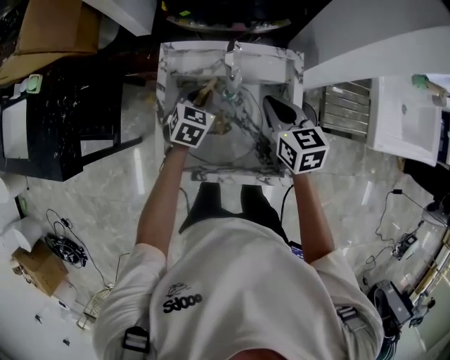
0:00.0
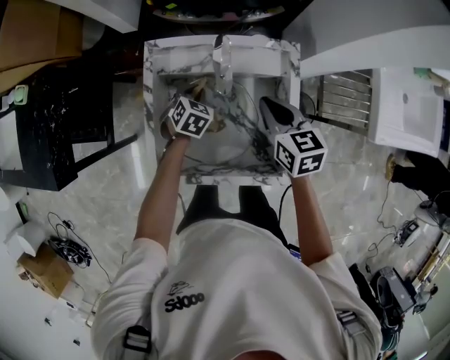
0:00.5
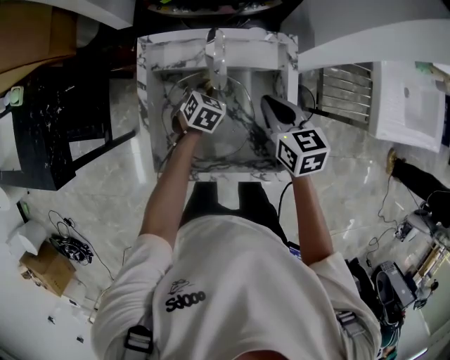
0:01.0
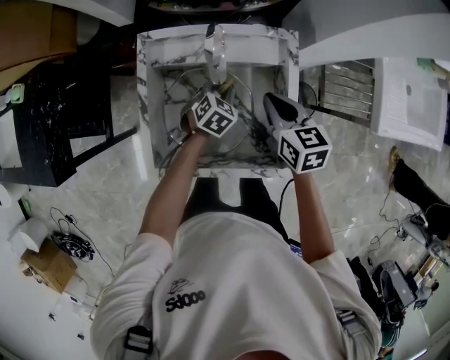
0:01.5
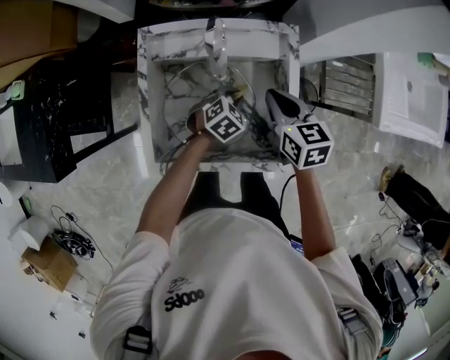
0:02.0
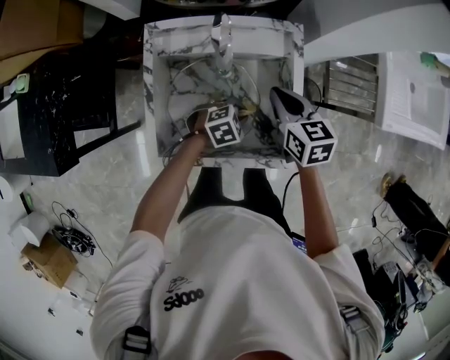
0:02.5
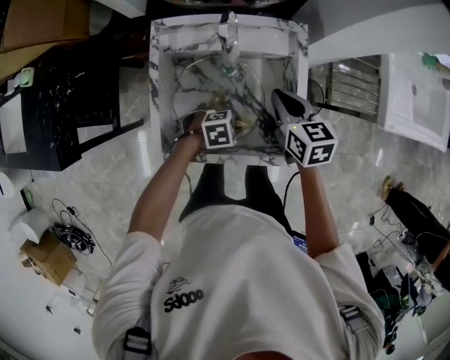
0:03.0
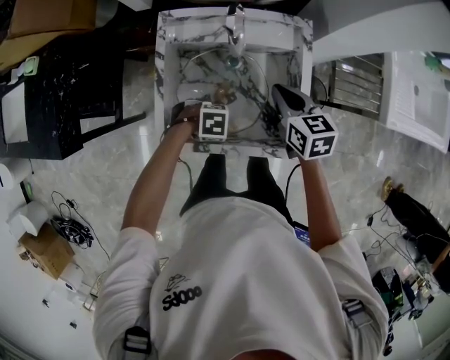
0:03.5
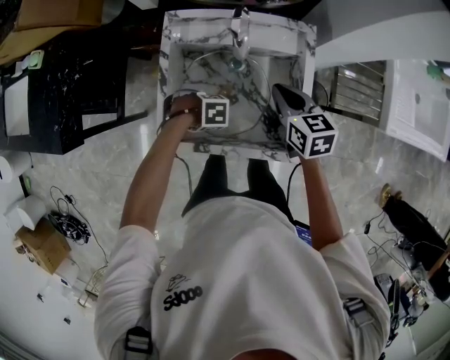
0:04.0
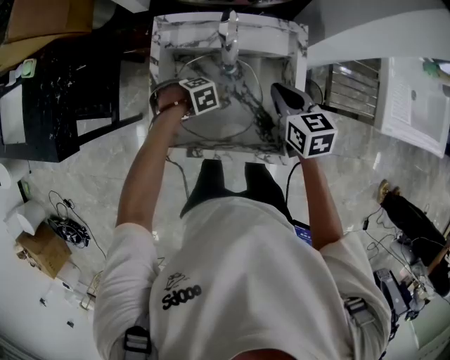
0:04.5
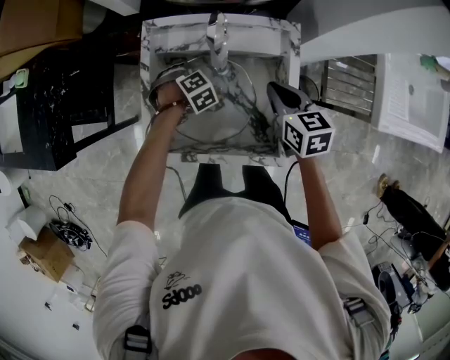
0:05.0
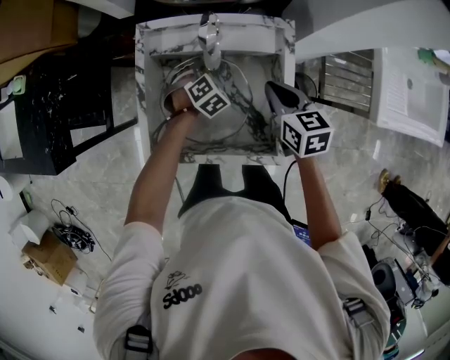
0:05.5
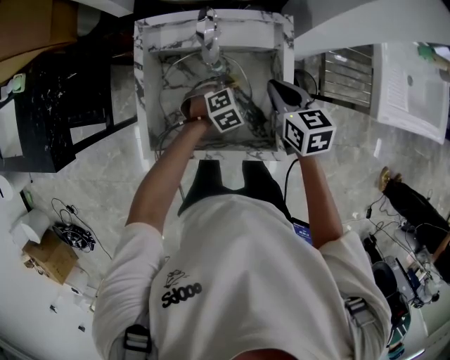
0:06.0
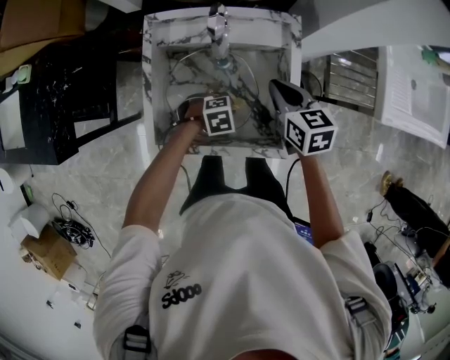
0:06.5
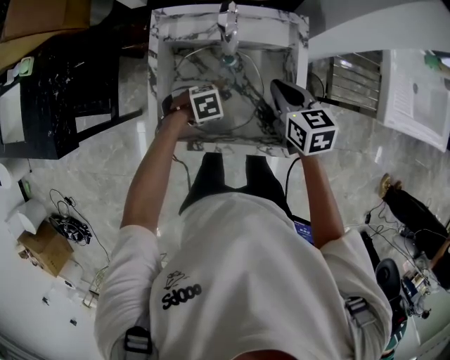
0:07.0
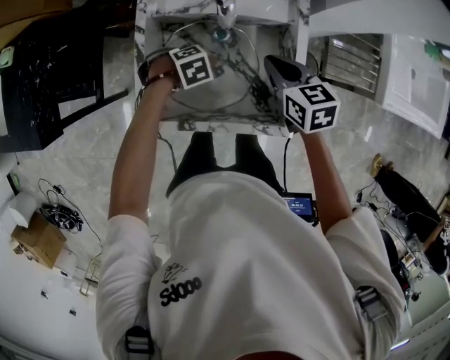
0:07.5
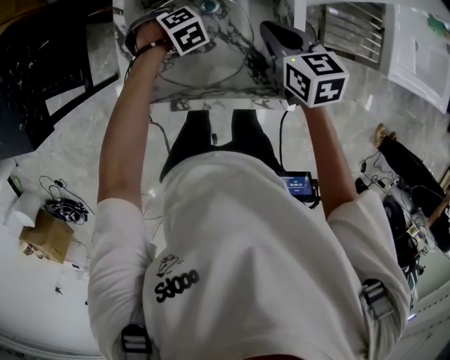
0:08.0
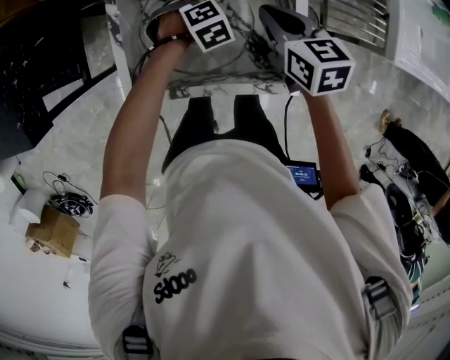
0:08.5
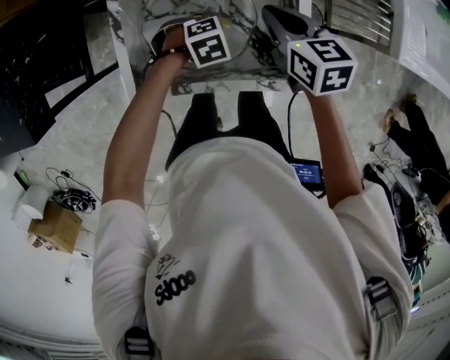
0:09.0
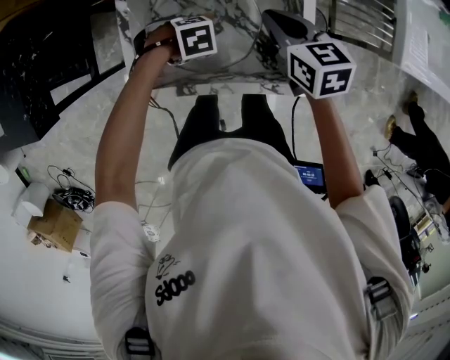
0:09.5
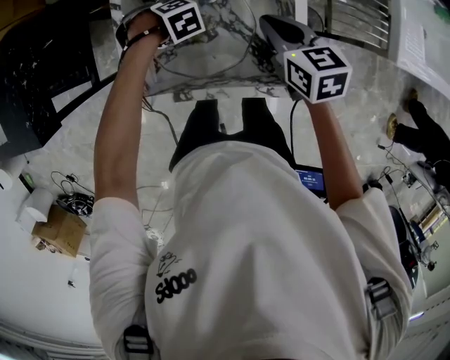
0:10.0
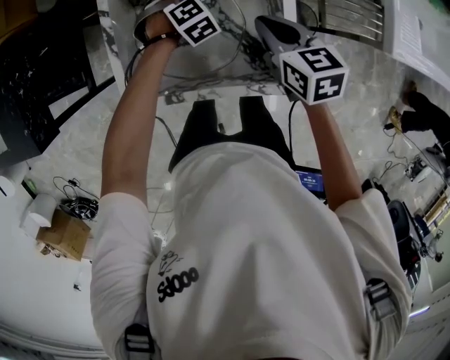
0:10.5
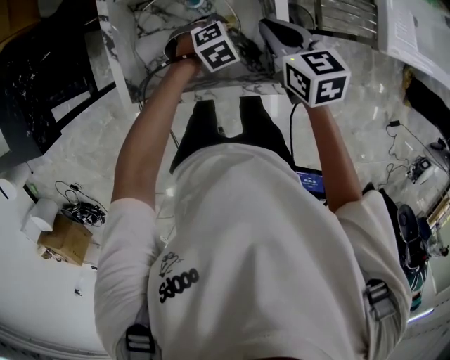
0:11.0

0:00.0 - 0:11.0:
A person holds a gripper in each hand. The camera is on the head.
0:00.0 - 0:02.0: The right gripper changes place by some 5 cm; the left gripper is displaced to the right, downward and backward by some 20 cm, and swivels some 30 degrees.
0:02.0 - 0:03.5: The left gripper changes place by approximately 20 cm, and rotates approximately 50 degrees.
0:03.5 - 0:05.5: The left gripper changes place by some 25 cm, and turns by roughly 60 degrees.
0:05.5 - 0:07.5: The left gripper shifts by roughly 10 cm, and changes its angle by some 30 degrees.
0:07.5 - 0:09.0: The left gripper shifts by about 10 cm.

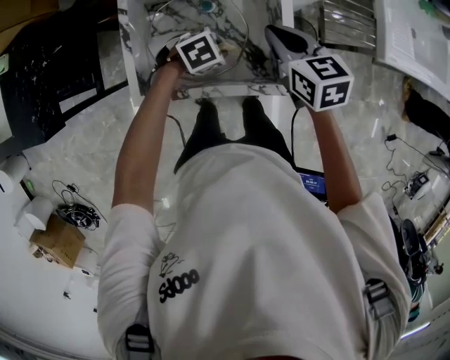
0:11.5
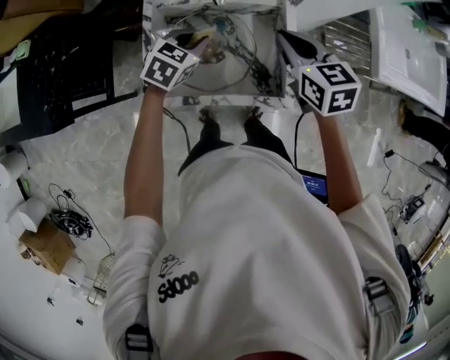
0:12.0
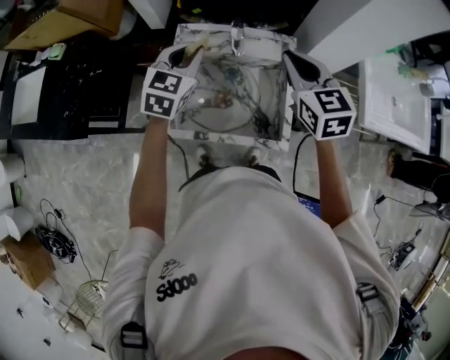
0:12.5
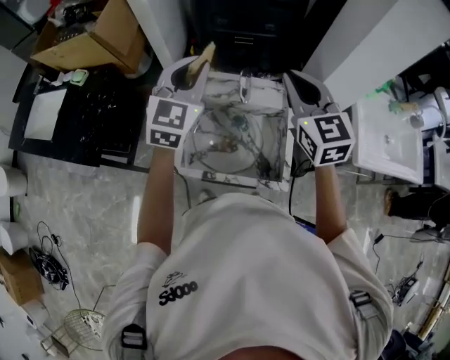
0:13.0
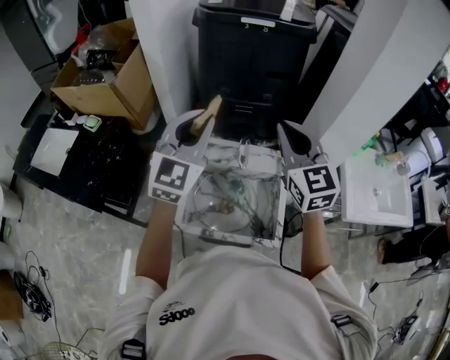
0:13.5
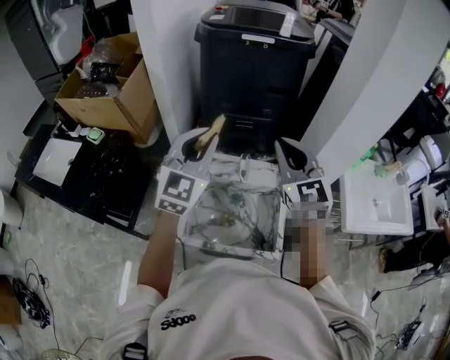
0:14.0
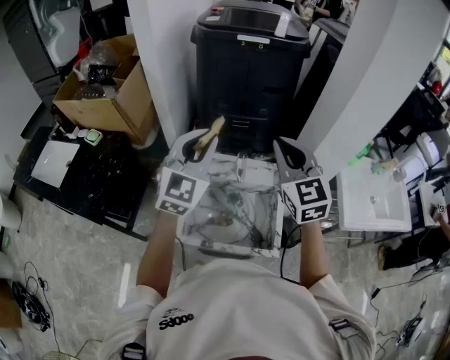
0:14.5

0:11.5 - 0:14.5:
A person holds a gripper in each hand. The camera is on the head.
0:11.5 - 0:13.0: The right gripper travels upward by approximately 30 cm, and swivels approximately 40 degrees, while the left gripper moves upward, about 40 cm, and tips its fingers upward by about 60 degrees.
0:13.0 - 0:14.5: Both grippers move upward, some 5 cm.

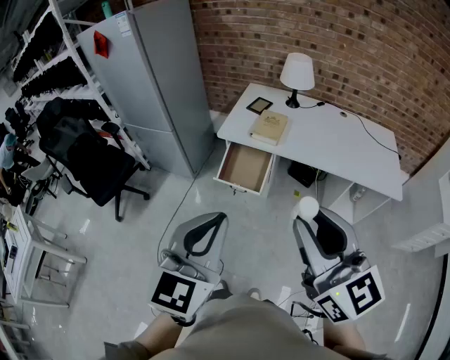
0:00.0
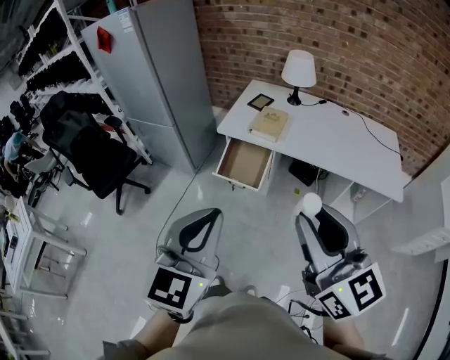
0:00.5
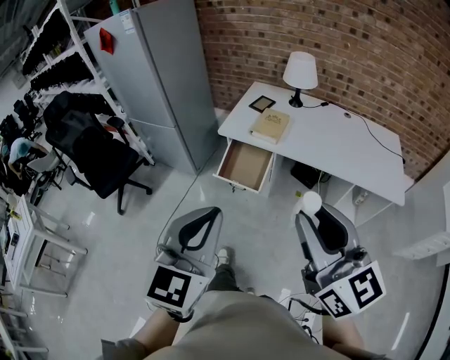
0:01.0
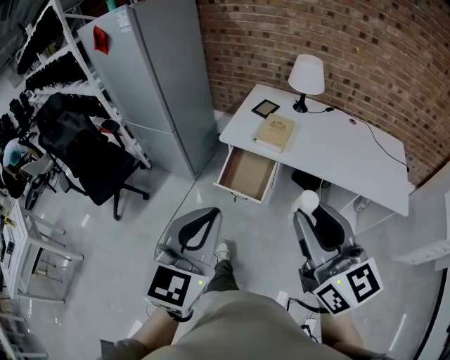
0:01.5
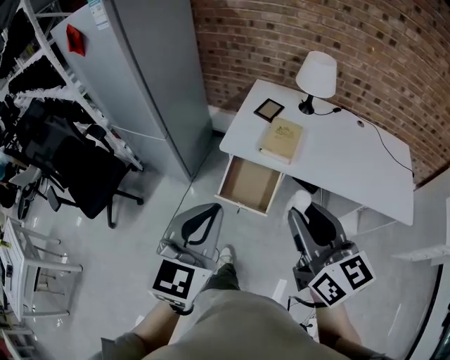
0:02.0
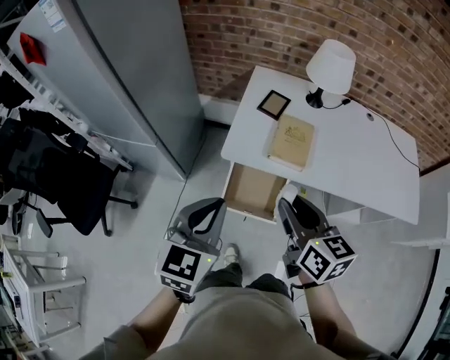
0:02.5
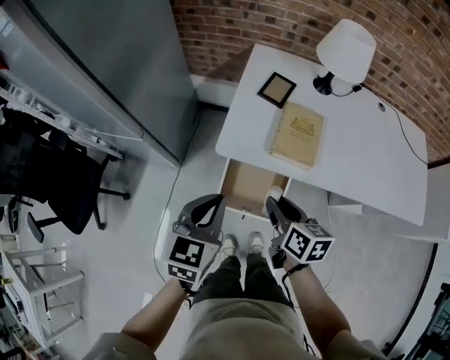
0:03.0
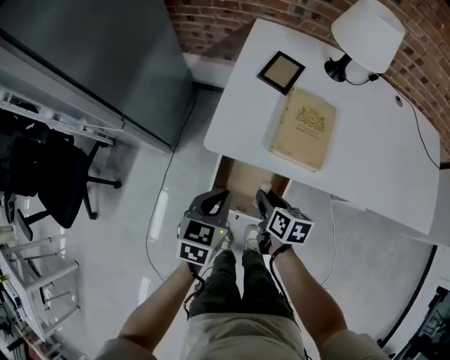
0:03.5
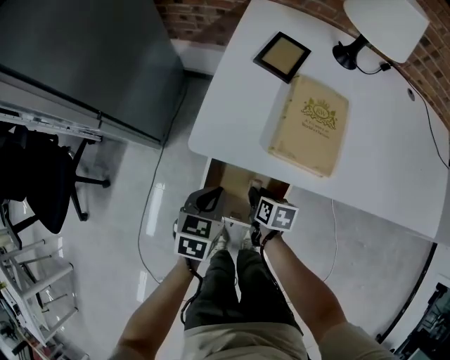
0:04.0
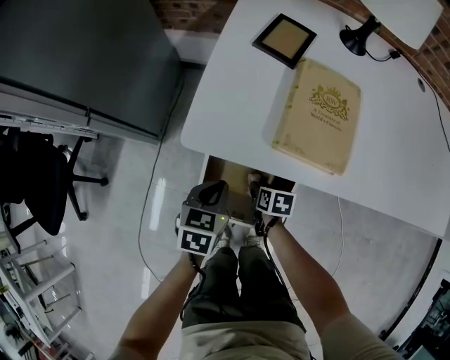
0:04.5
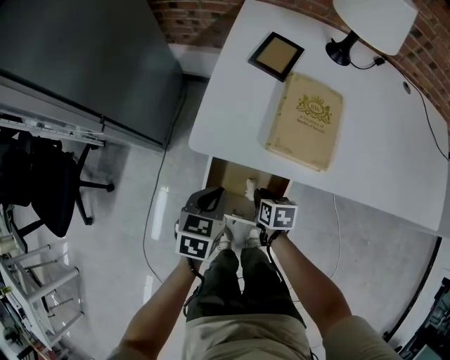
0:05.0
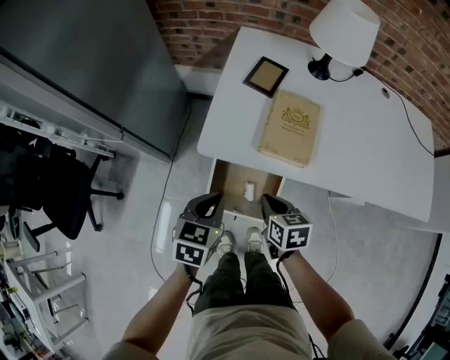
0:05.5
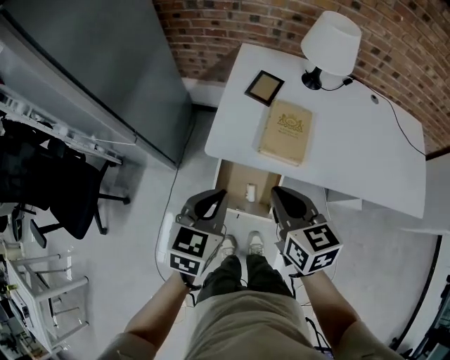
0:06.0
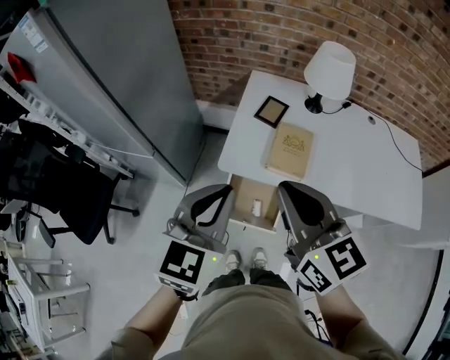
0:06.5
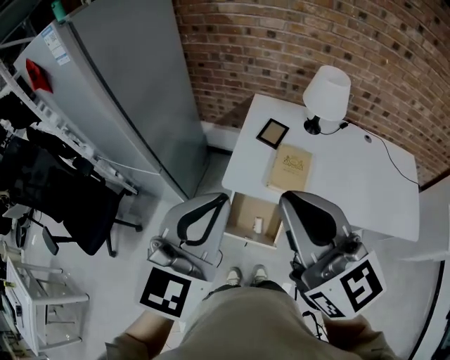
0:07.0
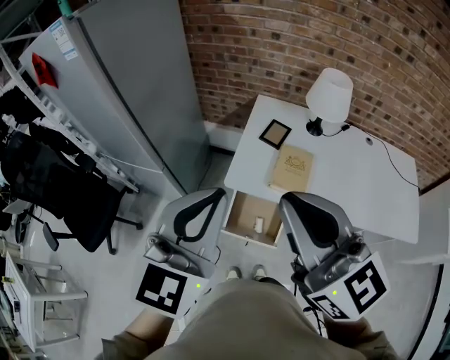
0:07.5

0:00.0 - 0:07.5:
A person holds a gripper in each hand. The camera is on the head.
0:00.0 - 0:02.0: The grippers both shift forward by some 20 cm.
0:02.0 - 0:04.0: Both grippers travel together downward and forward, roughly 60 cm. The right gripper angles its fingers downward, by about 50 degrees; the left gripper tips its fingers downward by approximately 30 degrees.
0:04.0 - 0:05.5: The two grippers go approximately 15 cm upward. The right gripper rotates about 20 degrees, and closes up.
0:05.5 - 0:07.5: The two grippers go roughly 50 cm upward. The right gripper angles its fingers upward, by approximately 50 degrees. Meanwhile the left gripper tips its fingers upward by some 40 degrees.

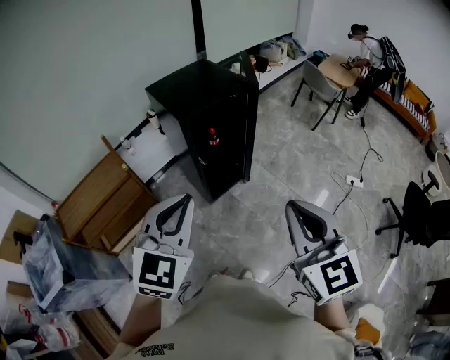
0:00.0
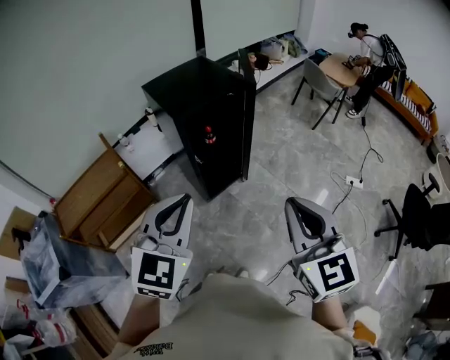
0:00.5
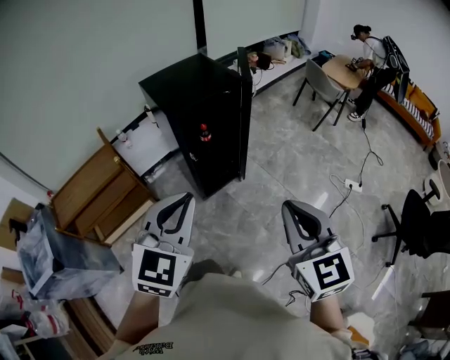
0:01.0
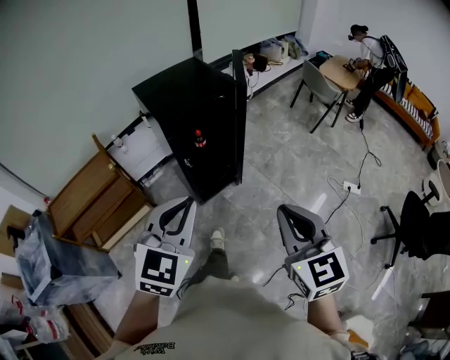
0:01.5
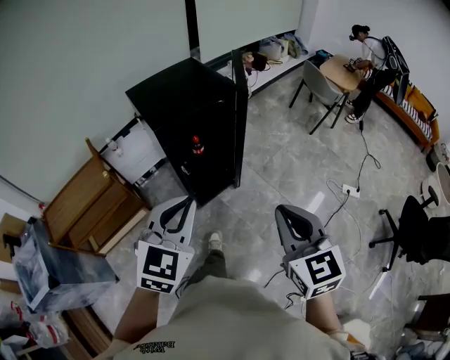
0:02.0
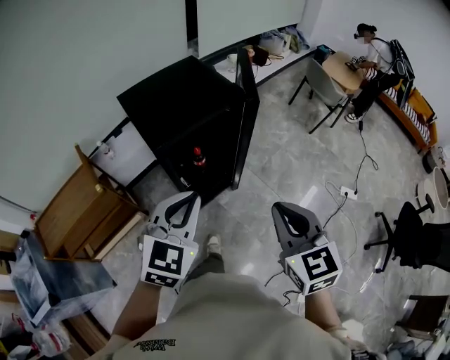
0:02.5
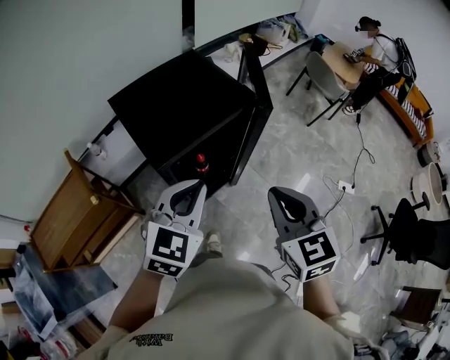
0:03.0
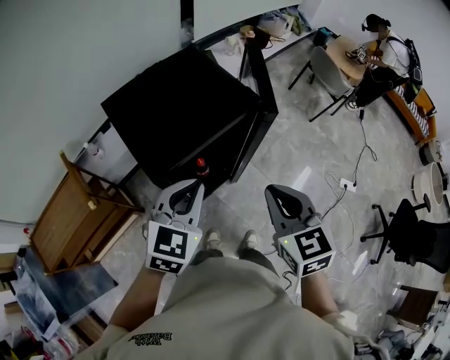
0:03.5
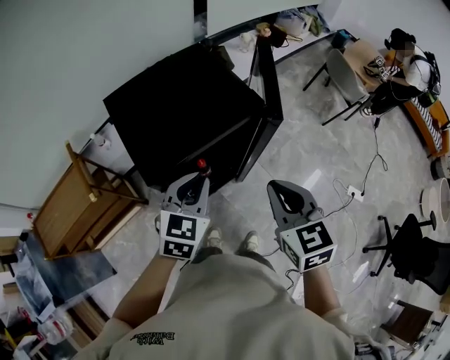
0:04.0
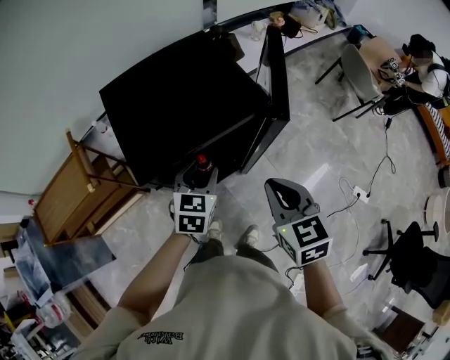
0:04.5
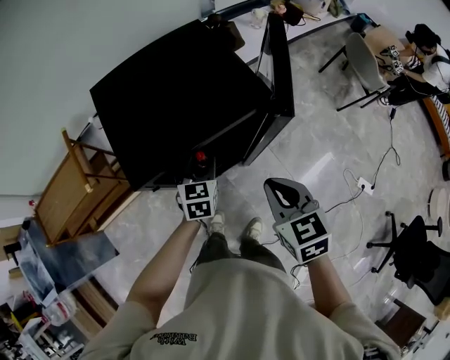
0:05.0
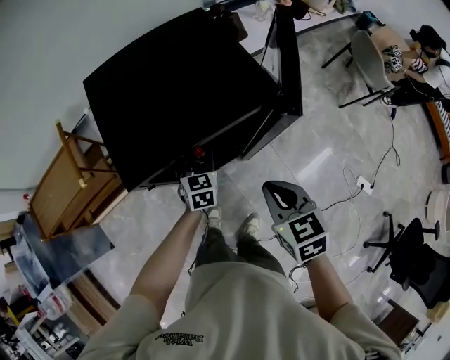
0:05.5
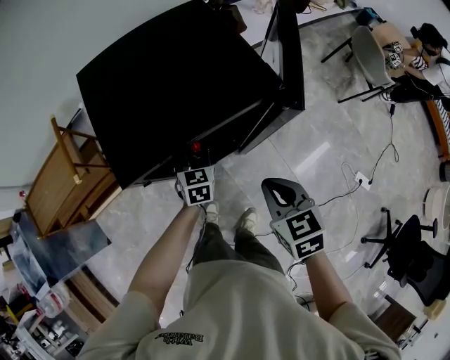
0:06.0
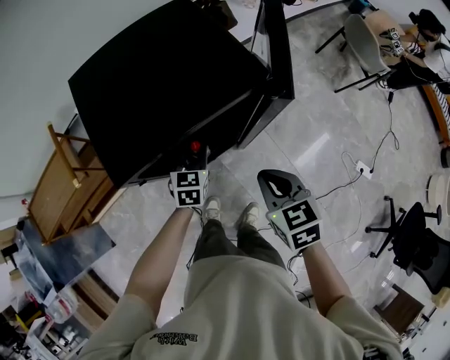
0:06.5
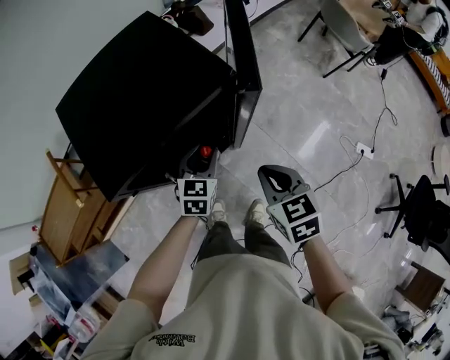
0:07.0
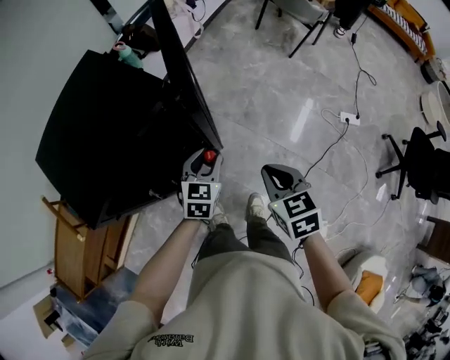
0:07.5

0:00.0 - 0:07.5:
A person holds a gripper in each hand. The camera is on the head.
0:00.0 - 0:02.0: The right gripper heads forward, downward and to the right, covering some 15 cm, while the left gripper shifts roughly 15 cm forward, to the right and downward.
0:02.0 - 0:04.0: Both grippers move forward, roughly 30 cm.
0:04.0 - 0:05.5: The left gripper moves downward and forward, about 25 cm, swivels some 30 degrees, and opens; the right gripper goes about 15 cm downward.
0:05.5 - 0:07.5: The left gripper changes place by approximately 20 cm, and changes its angle by approximately 40 degrees. The right gripper changes place by roughly 15 cm, and swivels approximately 30 degrees.
